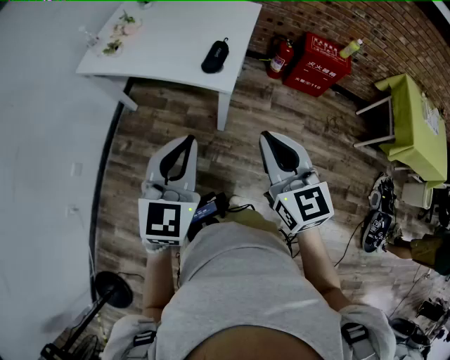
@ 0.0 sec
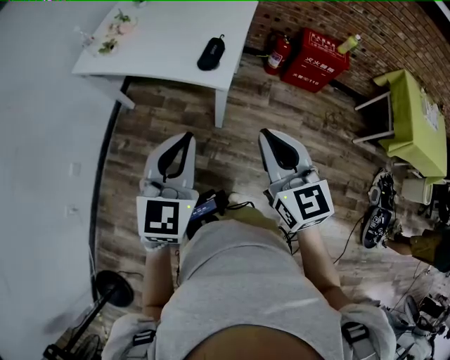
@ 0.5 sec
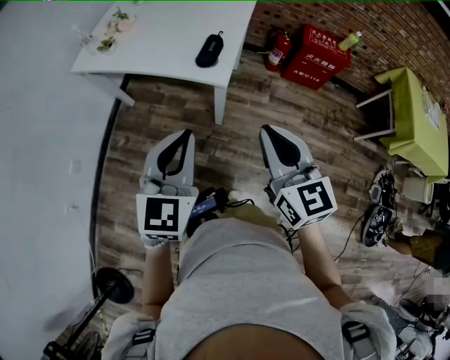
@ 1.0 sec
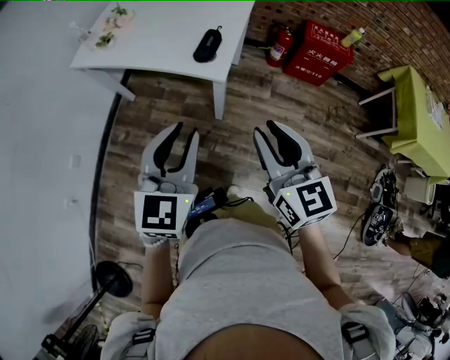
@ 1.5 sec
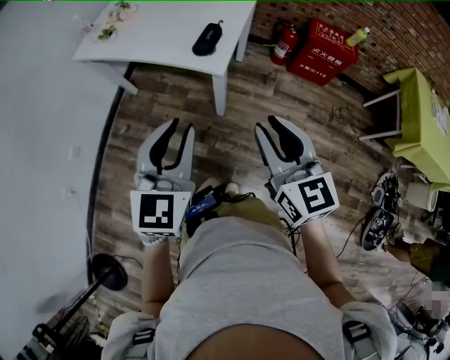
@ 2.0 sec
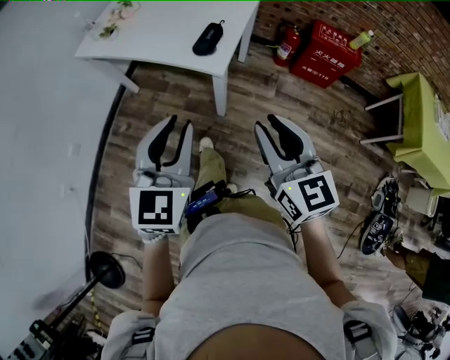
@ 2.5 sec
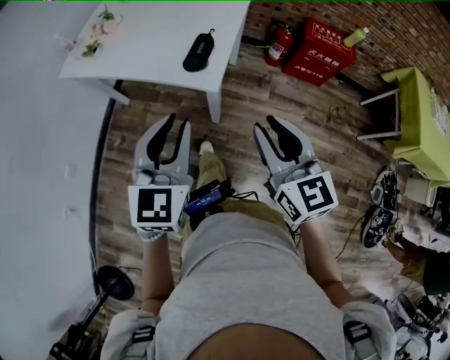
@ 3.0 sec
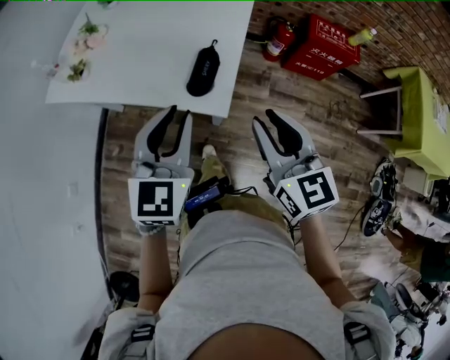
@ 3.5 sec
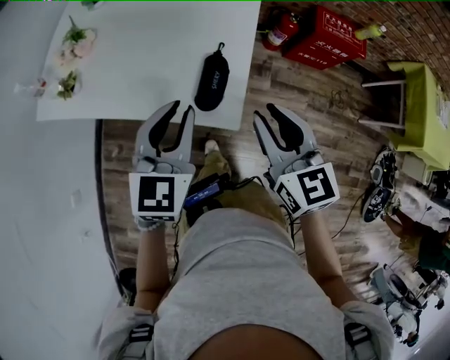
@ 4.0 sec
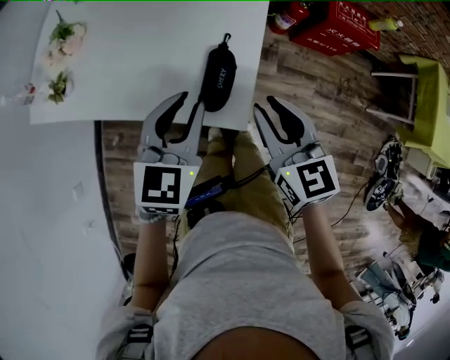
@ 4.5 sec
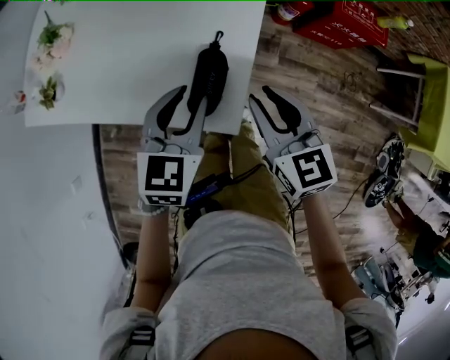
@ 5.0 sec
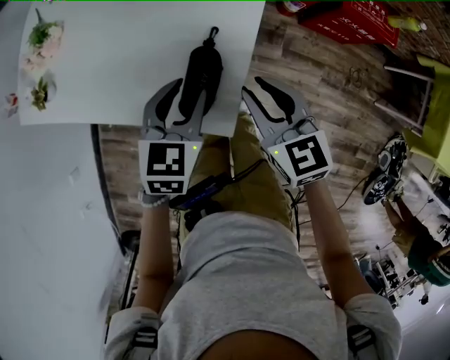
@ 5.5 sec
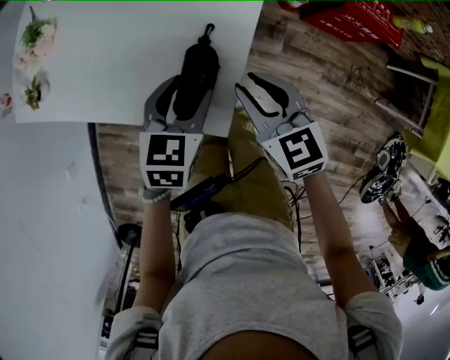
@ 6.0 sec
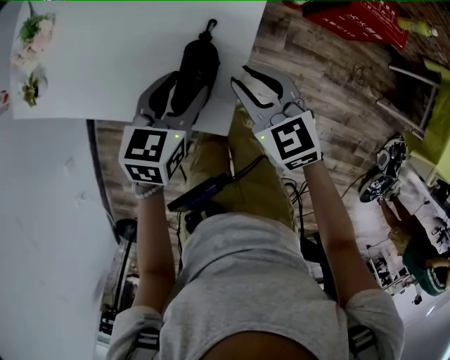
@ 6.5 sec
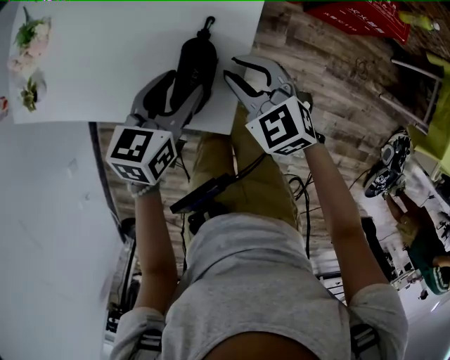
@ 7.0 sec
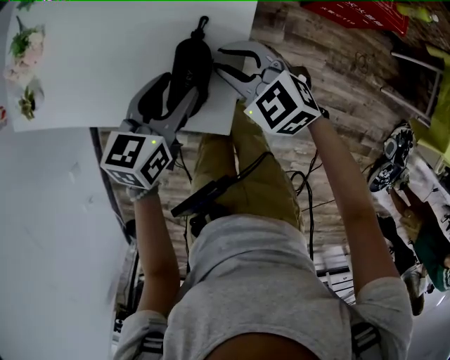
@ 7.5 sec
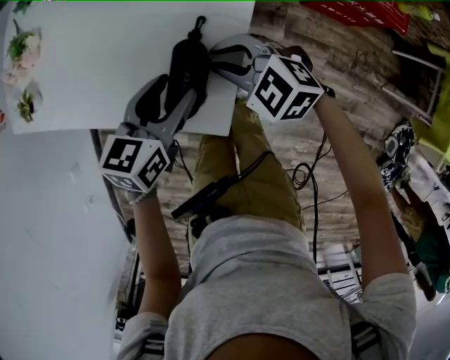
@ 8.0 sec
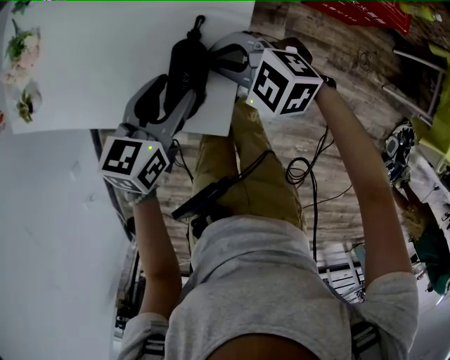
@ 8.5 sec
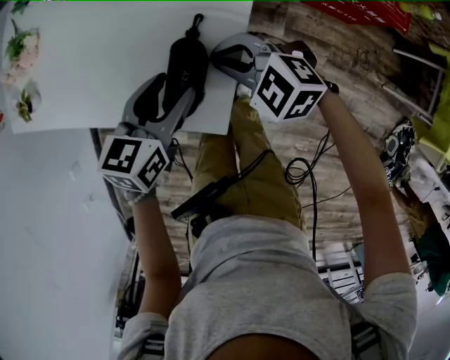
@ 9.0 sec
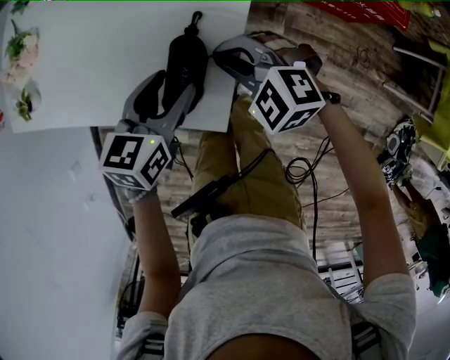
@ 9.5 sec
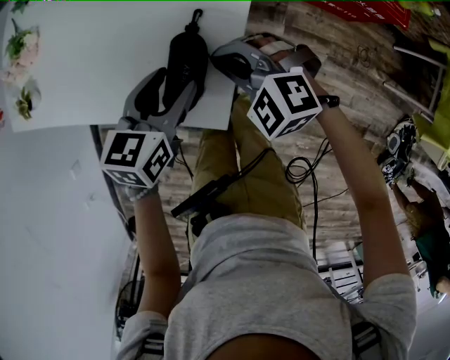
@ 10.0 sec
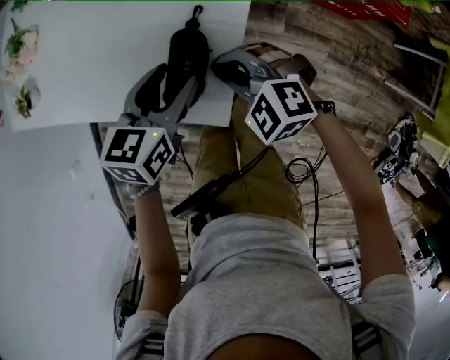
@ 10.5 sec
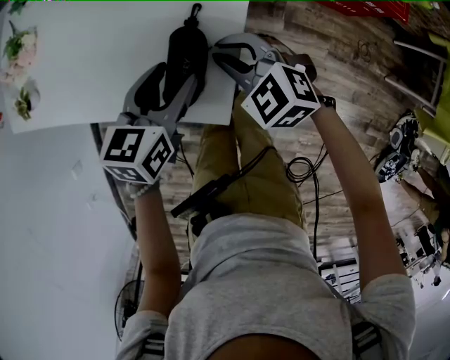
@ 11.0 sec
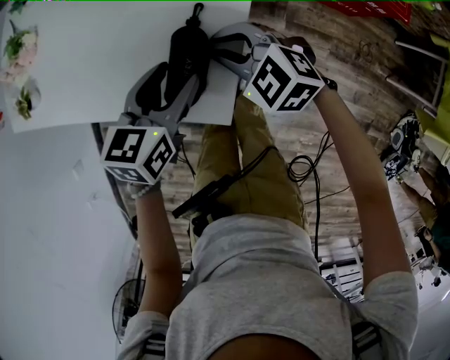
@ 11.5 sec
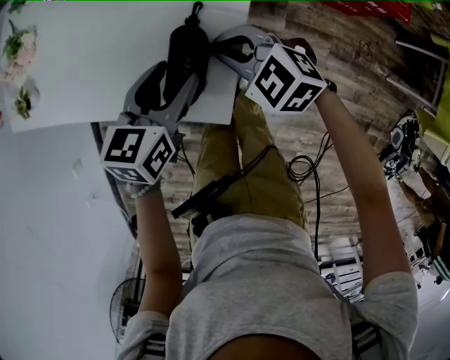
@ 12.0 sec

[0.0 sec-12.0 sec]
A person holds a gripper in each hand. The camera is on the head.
0.0 sec to 2.0 sec: The right gripper moves about 5 cm, and opens its fingers.
2.0 sec to 4.0 sec: Both grippers move forward, approximately 30 cm.
4.0 sec to 6.0 sec: The left gripper is displaced downward, forward and to the right by approximately 20 cm, rotates approximately 30 degrees, and opens its fingers. Meanwhile the right gripper heads downward and forward, covering some 15 cm, and turns by about 20 degrees.
6.0 sec to 8.0 sec: The right gripper travels downward by some 5 cm, and rotates roughly 40 degrees.
8.0 sec to 10.0 sec: There are only small adjustments of the grippers.

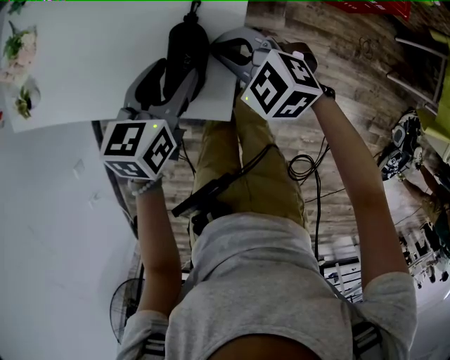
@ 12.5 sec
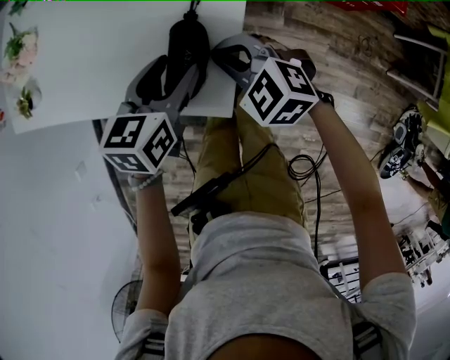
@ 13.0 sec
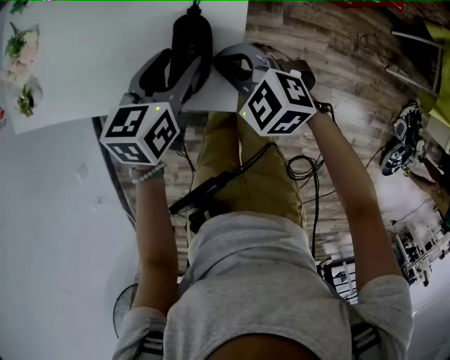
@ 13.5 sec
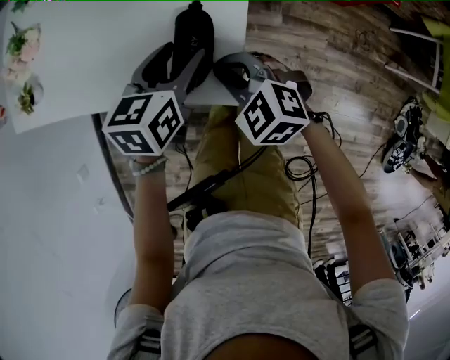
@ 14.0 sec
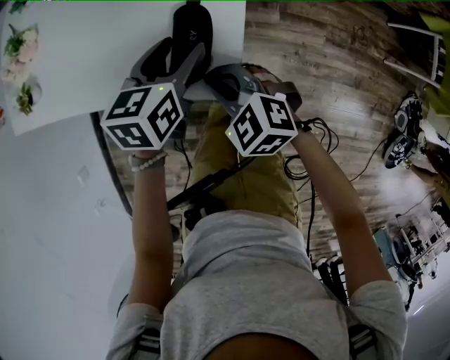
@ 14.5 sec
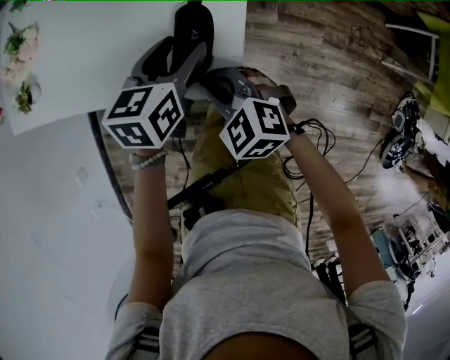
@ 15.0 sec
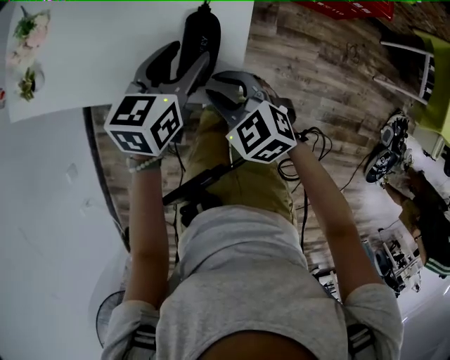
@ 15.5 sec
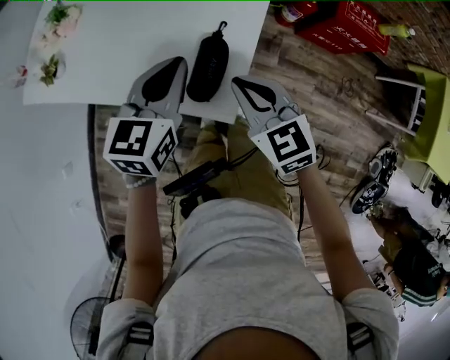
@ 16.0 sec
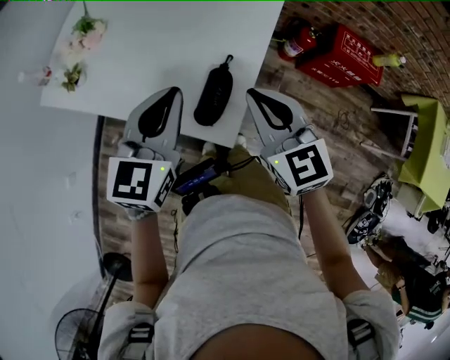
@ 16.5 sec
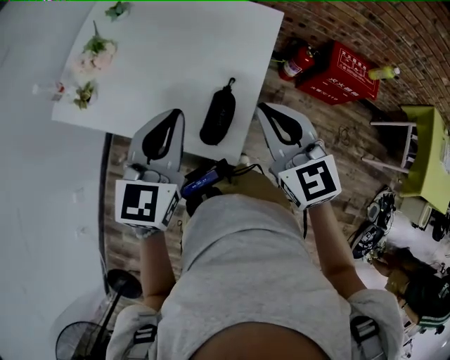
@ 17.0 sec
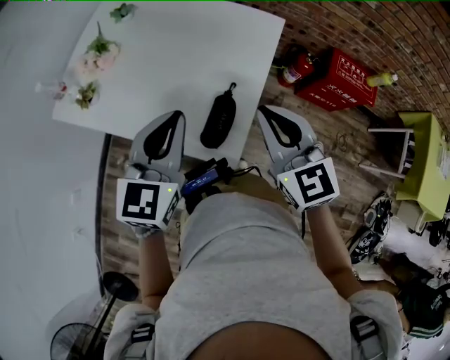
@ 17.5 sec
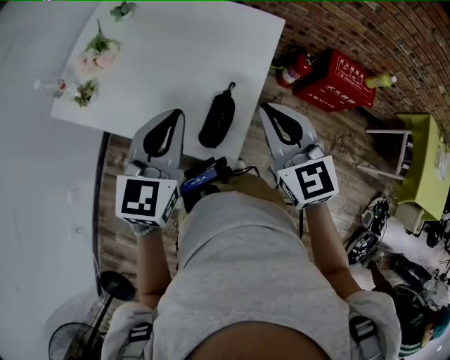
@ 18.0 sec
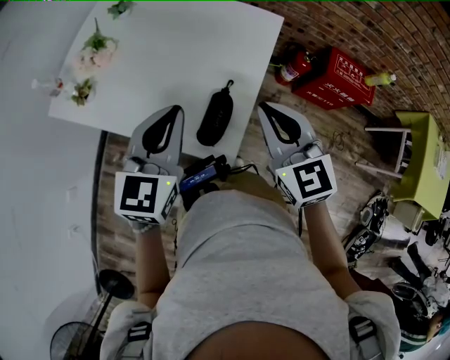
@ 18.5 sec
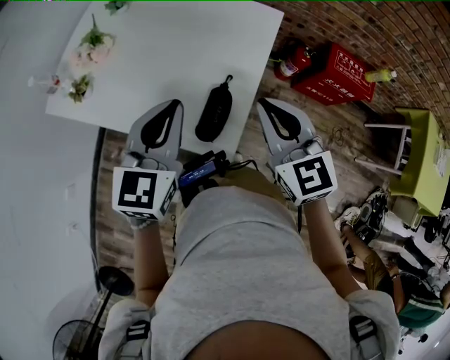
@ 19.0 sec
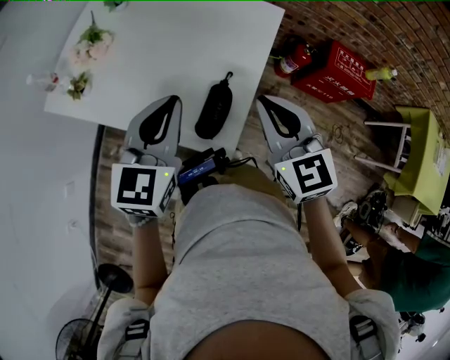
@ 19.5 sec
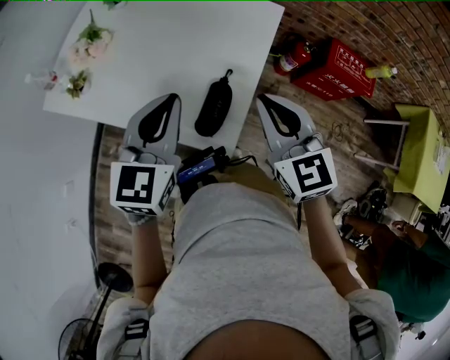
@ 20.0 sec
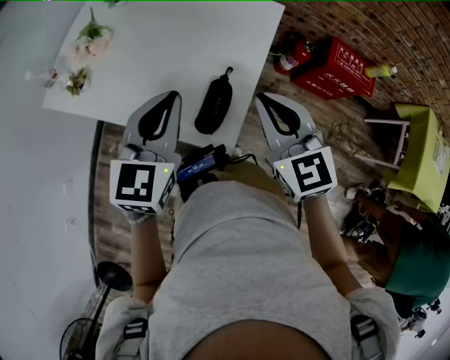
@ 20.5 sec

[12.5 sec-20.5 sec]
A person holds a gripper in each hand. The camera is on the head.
12.5 sec to 14.5 sec: The right gripper shifts about 10 cm backward and to the left.
14.5 sec to 16.5 sec: The grippers both shift upward by some 20 cm. The right gripper swivels roughly 30 degrees, and opens, then closes again. The left gripper swivels about 30 degrees, and closes its fingers.
16.5 sec to 18.5 sec: The grippers make only small movements.
18.5 sec to 20.5 sec: The two grippers keep their place.

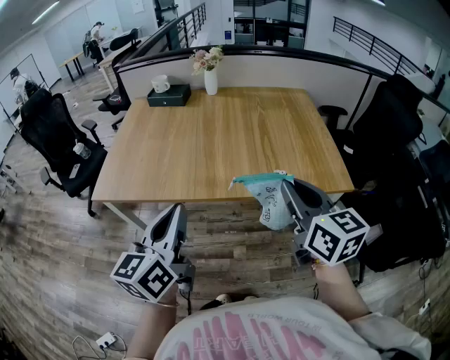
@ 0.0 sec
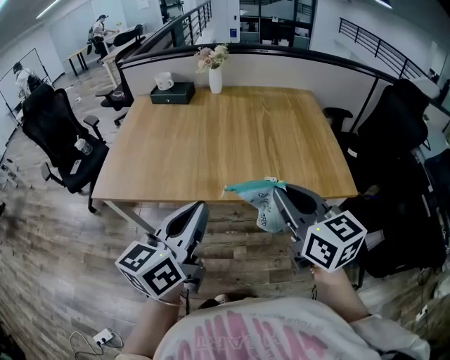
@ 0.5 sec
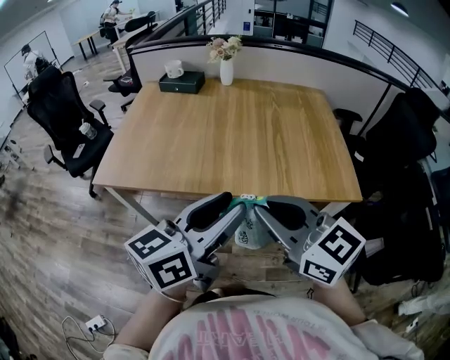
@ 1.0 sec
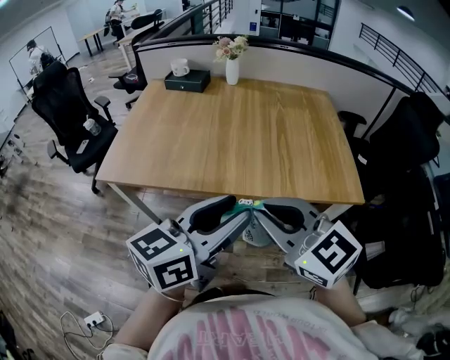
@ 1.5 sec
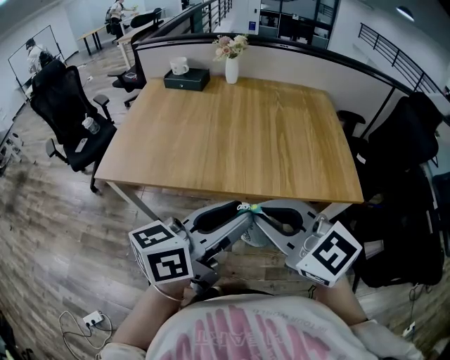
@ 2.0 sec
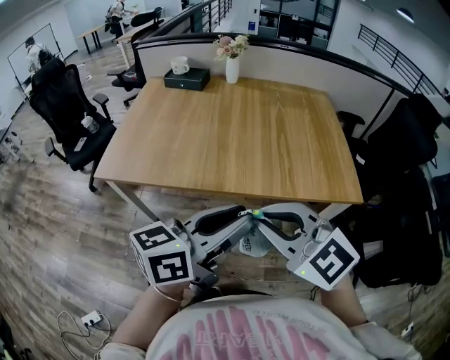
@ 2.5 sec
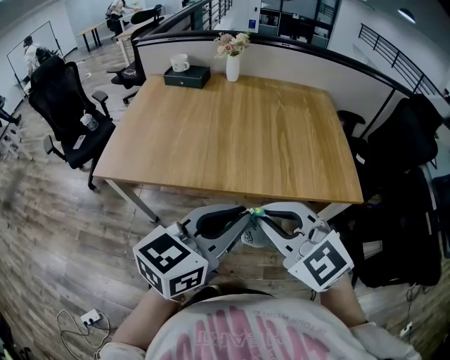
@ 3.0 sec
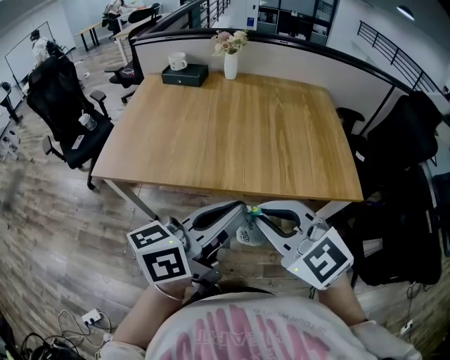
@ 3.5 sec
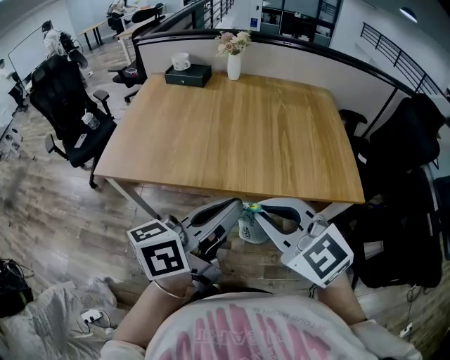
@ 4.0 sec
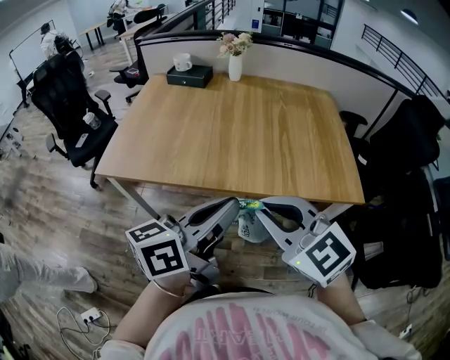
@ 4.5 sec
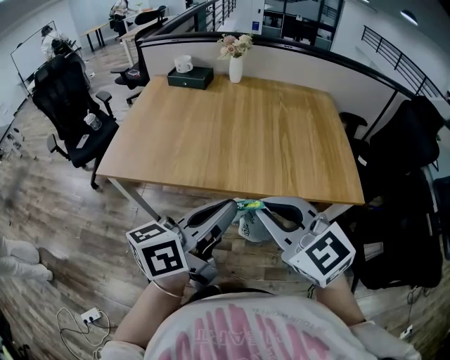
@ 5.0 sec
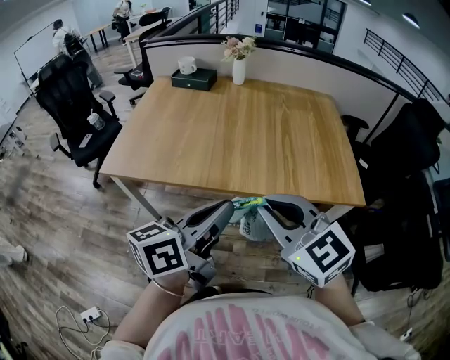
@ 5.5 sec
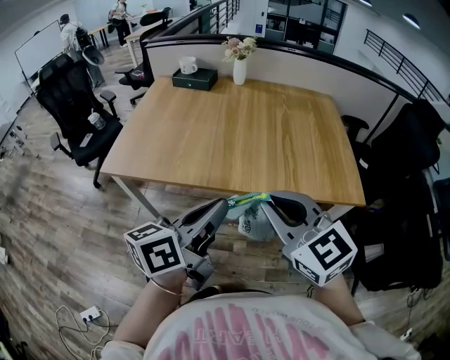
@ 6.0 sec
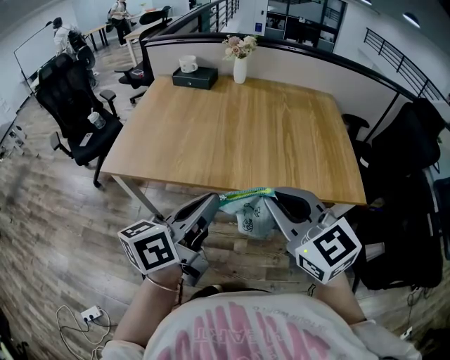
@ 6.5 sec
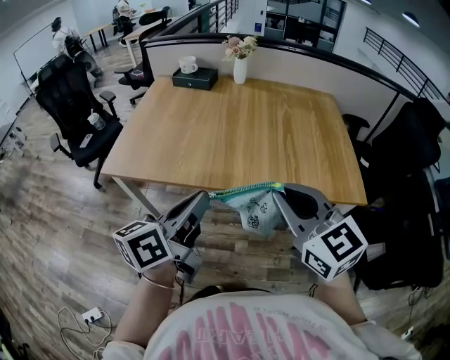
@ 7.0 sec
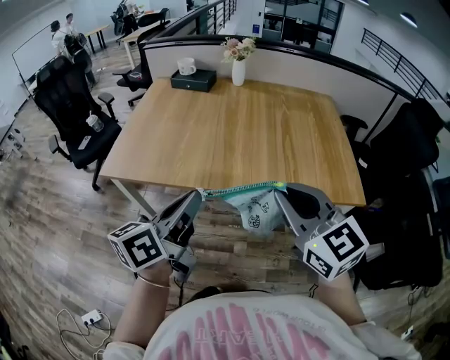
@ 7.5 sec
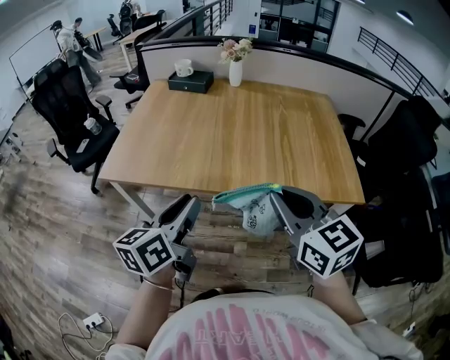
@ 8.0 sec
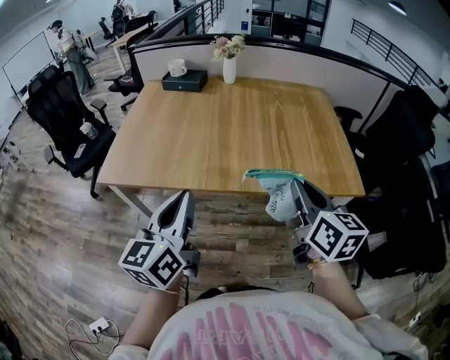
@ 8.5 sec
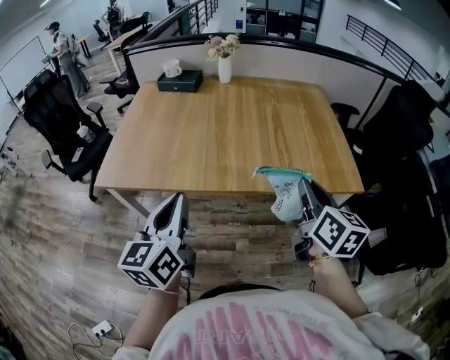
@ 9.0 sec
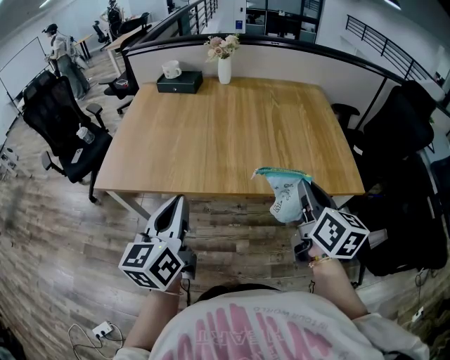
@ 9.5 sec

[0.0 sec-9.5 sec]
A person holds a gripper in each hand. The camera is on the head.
0.0 sec to 2.0 sec: The right gripper shifts approximately 10 cm to the left and backward, and changes its angle by approximately 40 degrees; the left gripper is displaced to the right by roughly 10 cm, turns by about 30 degrees, and opens up.
2.0 sec to 4.0 sec: The left gripper closes its fingers.
4.0 sec to 5.5 sec: The grippers stay close to where they were, moving slightly.
5.5 sec to 7.5 sec: The left gripper goes approximately 10 cm to the left.
7.5 sec to 9.5 sec: The left gripper turns by some 30 degrees, and opens, then closes once more, while the right gripper travels to the right and downward by some 10 cm, and changes its angle by about 50 degrees.
